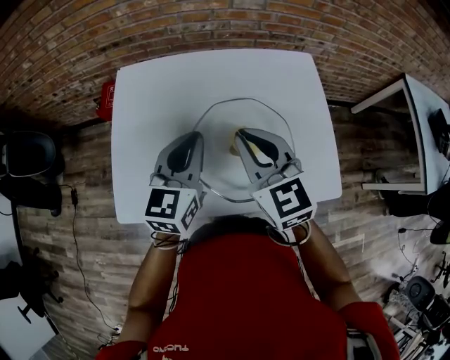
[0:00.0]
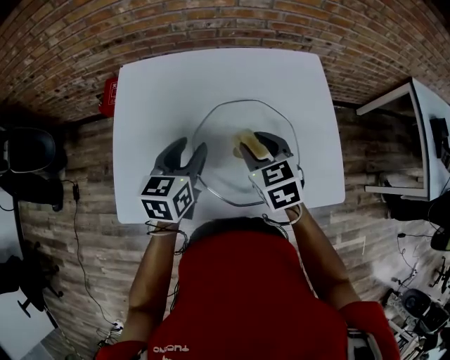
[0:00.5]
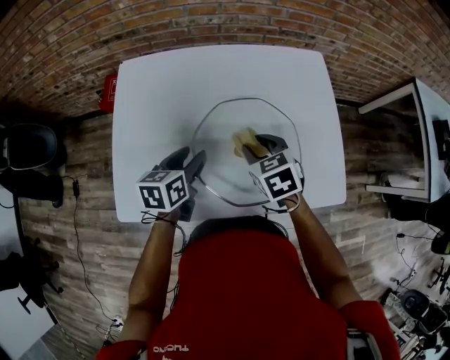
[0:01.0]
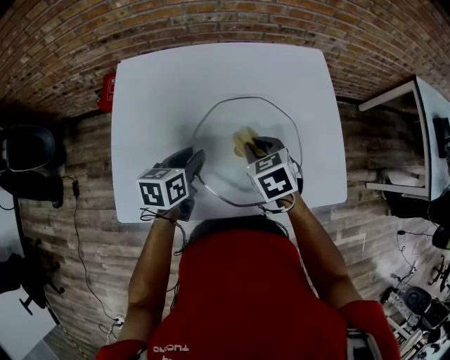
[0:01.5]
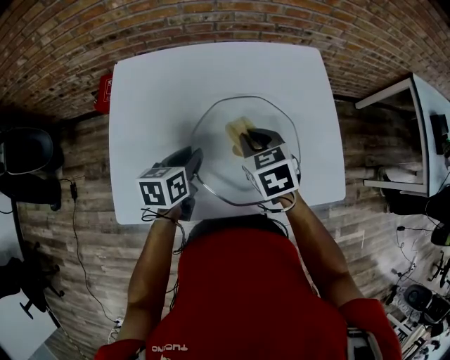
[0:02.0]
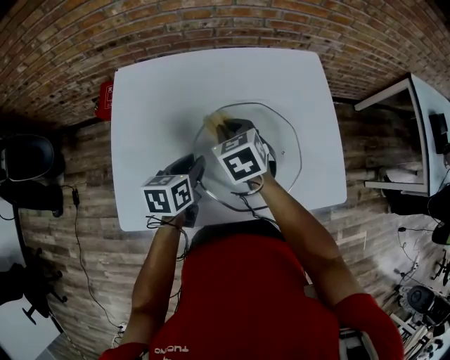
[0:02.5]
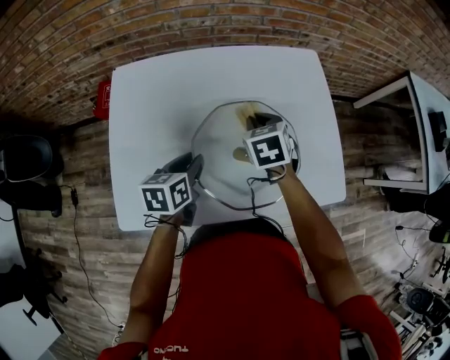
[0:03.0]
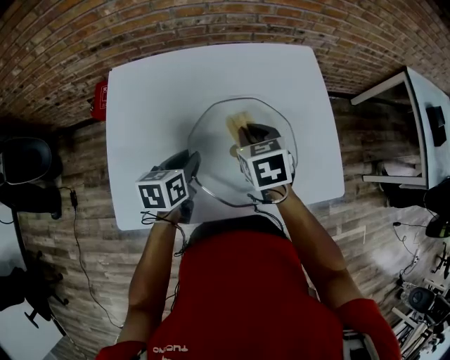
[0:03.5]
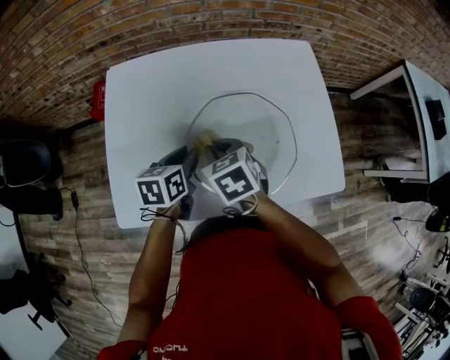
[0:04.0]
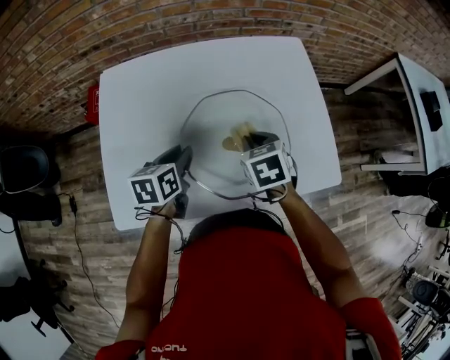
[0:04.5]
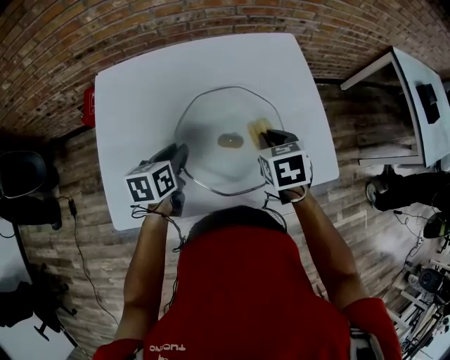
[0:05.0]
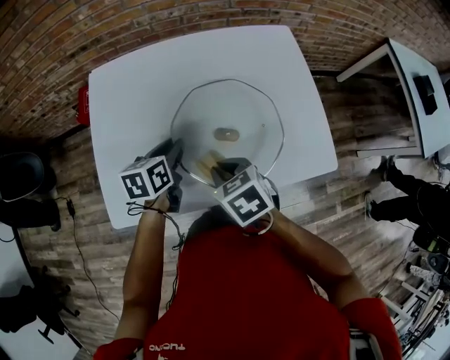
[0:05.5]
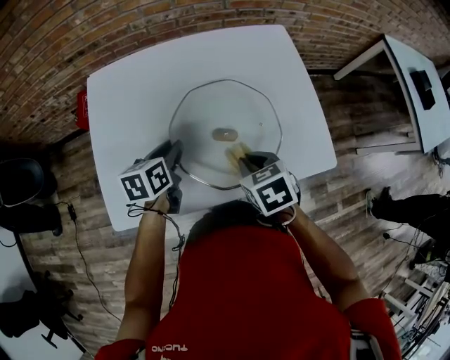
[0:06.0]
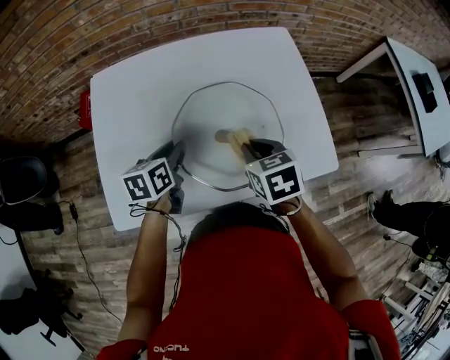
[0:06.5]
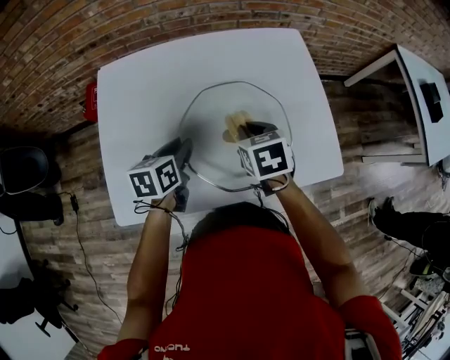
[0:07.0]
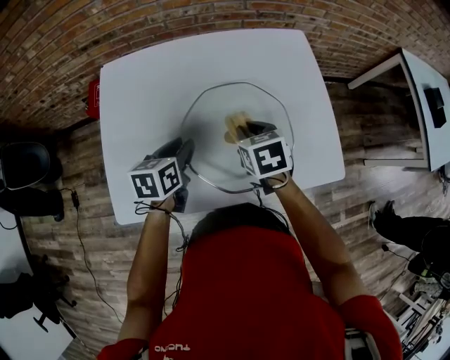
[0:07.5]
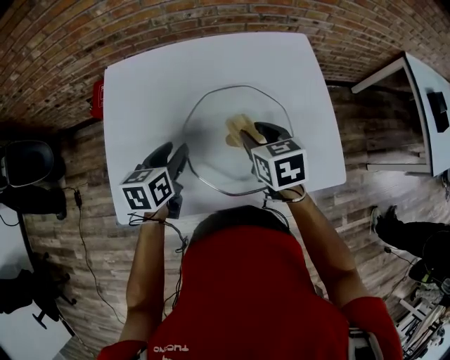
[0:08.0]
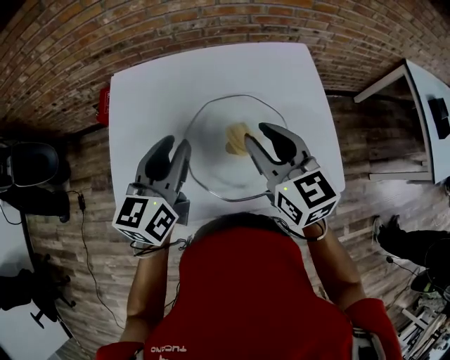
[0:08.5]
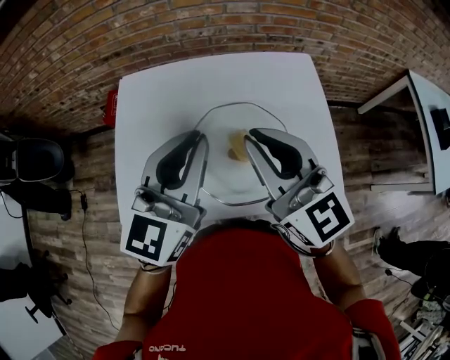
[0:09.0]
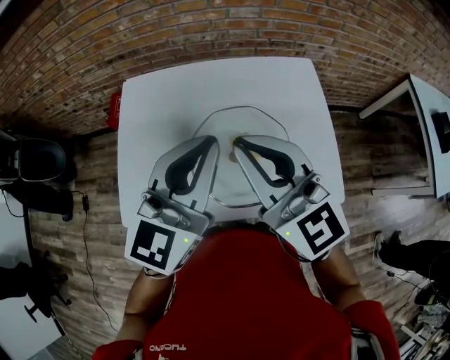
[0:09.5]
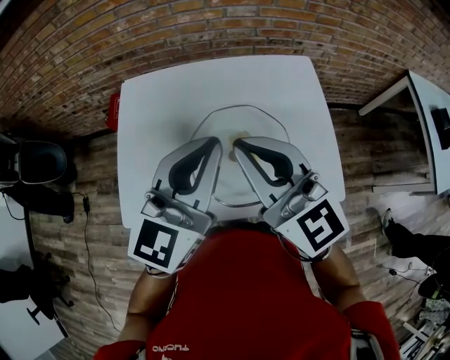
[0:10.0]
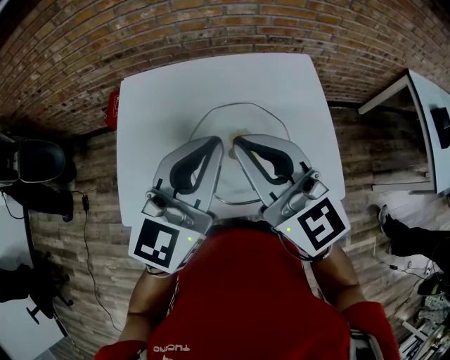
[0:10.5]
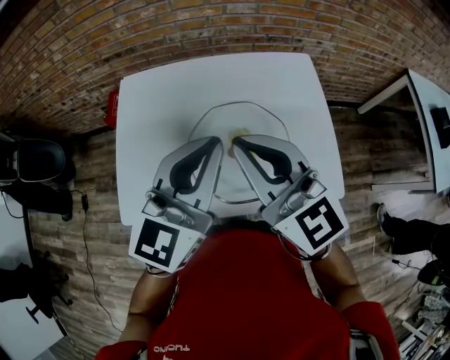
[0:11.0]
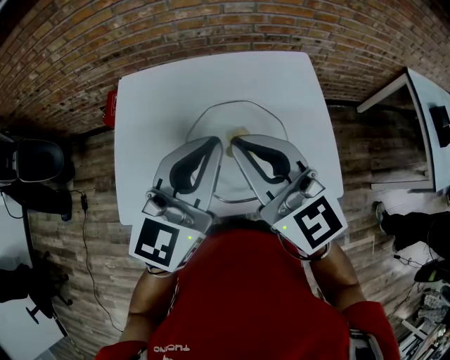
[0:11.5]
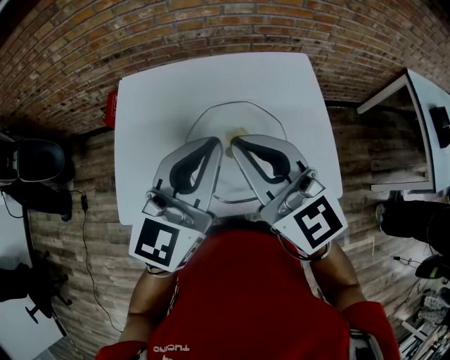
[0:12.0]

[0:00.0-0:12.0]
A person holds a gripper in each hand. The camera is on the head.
0:00.0 to 0:02.0: Both grippers travel together downward, about 15 cm. The right gripper changes its angle by approximately 30 degrees, and opens, then closes once more, while the left gripper swivels some 40 degrees, and opens its fingers.
0:02.0 to 0:04.0: The right gripper shifts approximately 5 cm to the left.
0:04.0 to 0:06.0: The right gripper moves left and right over about 20 cm, changing direction 2 times.
0:06.0 to 0:08.0: The right gripper heads forward, covering roughly 10 cm, and opens up.
0:08.0 to 0:10.0: The left gripper shifts approximately 30 cm upward and to the right, points its fingers about 40 degrees further upward, and closes. The right gripper is displaced upward by some 25 cm, tips its fingers upward by roughly 50 degrees, and closes up.
0:10.0 to 0:12.0: Neither gripper changes place.

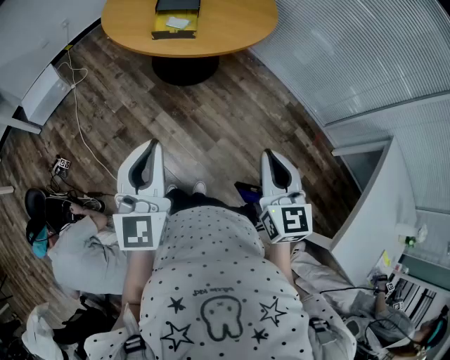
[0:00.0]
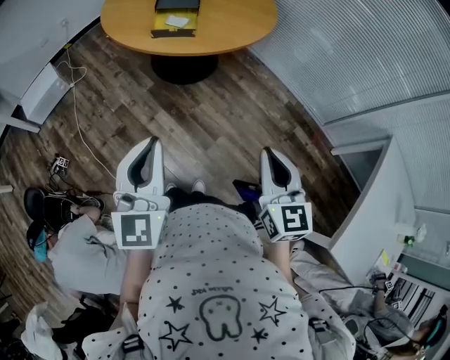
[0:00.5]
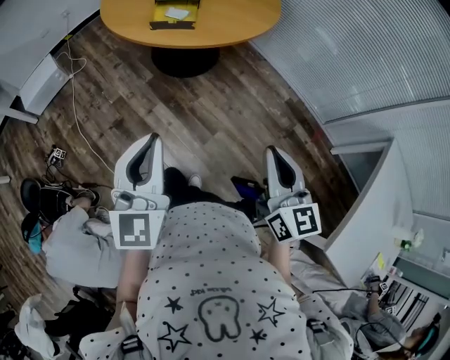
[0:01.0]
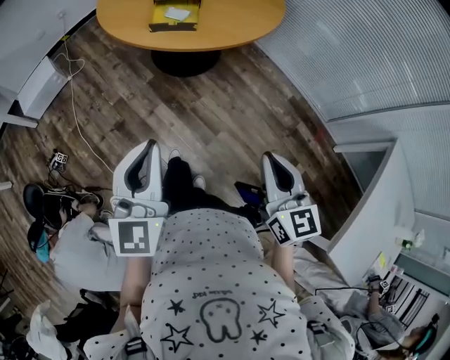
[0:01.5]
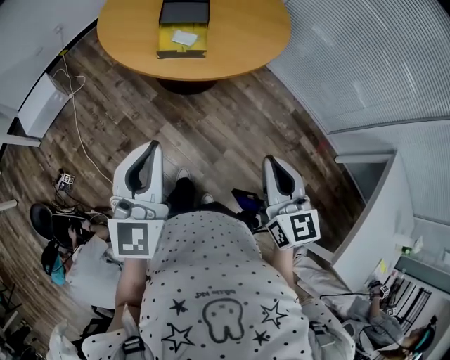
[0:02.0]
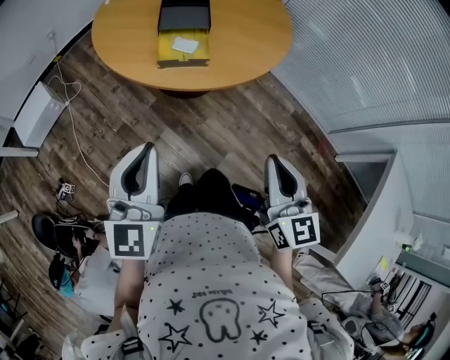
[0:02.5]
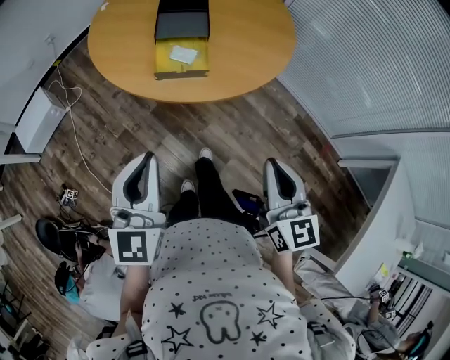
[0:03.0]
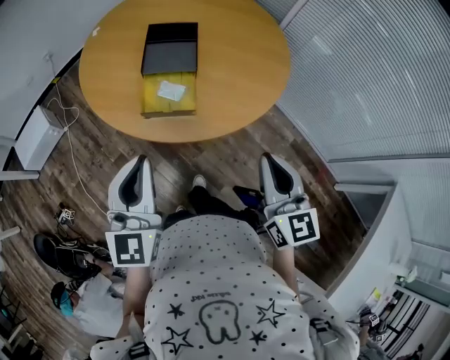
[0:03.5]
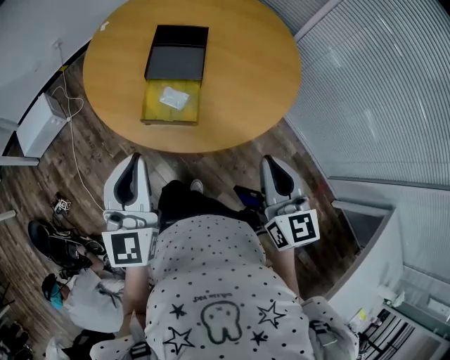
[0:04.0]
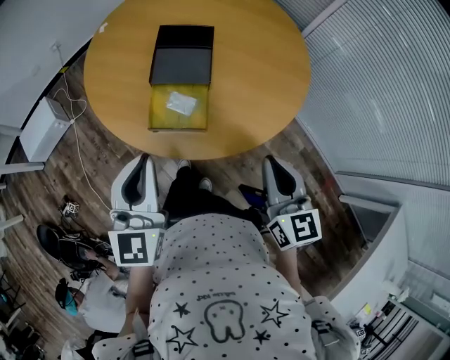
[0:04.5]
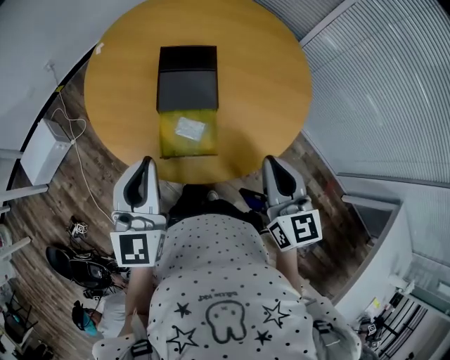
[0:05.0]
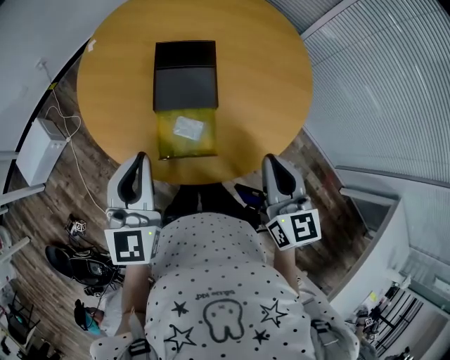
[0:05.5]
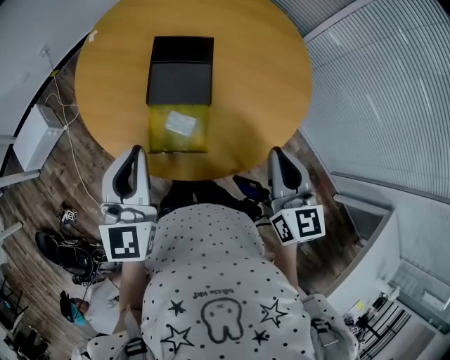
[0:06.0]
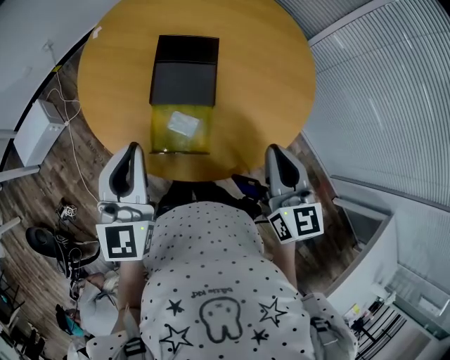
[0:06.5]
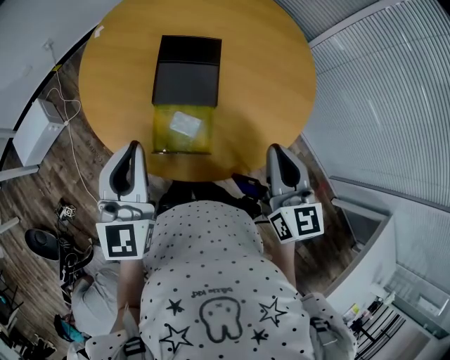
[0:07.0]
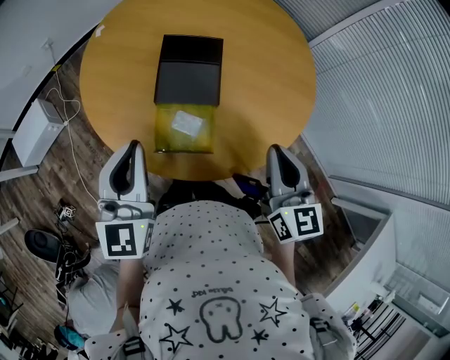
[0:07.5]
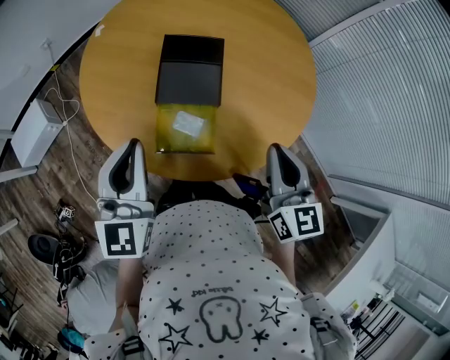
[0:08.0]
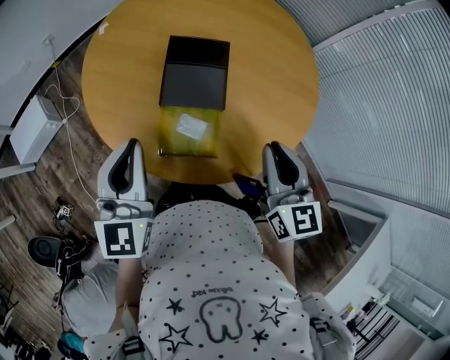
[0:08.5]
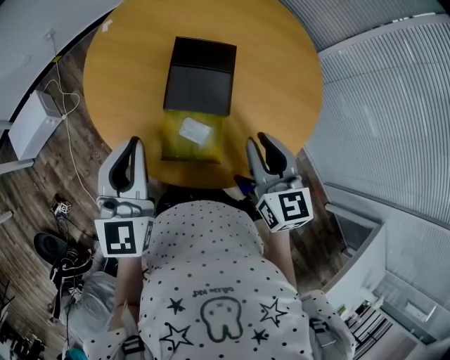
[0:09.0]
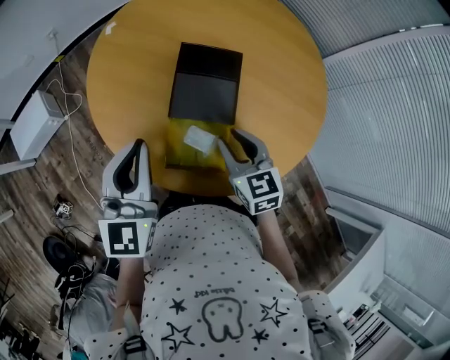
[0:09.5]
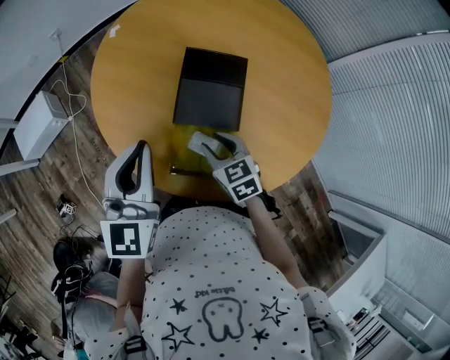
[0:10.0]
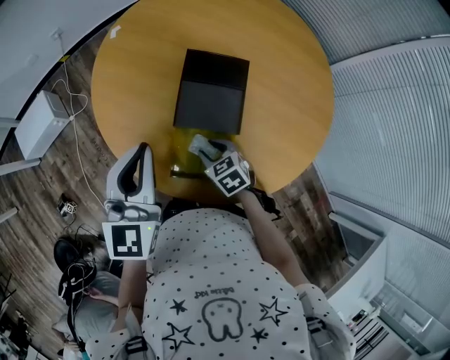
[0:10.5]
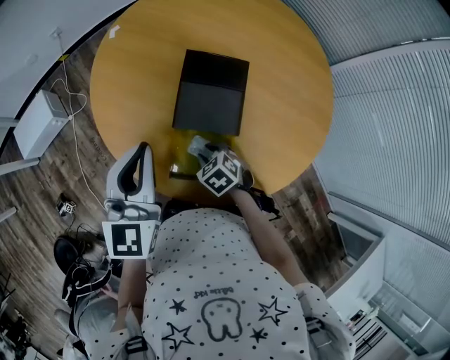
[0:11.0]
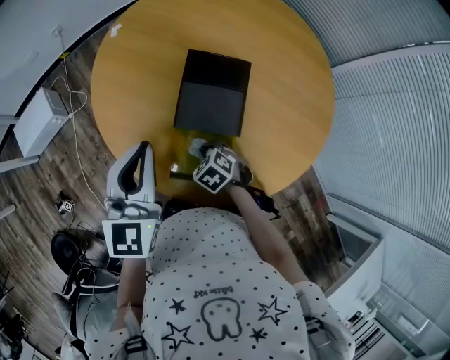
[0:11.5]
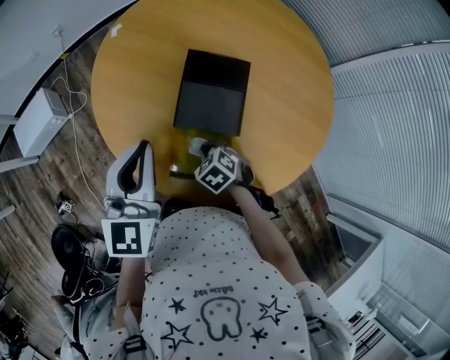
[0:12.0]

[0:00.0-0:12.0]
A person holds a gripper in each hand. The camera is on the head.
0:00.0 to 0:02.0: The right gripper shifts about 15 cm forward and to the left. Meanwhile the left gripper shifts approximately 15 cm forward.
0:02.0 to 0:04.0: Both grippers travel together forward, some 30 cm.
0:04.0 to 0:06.0: Both grippers move forward, about 15 cm.
0:06.0 to 0:08.0: The grippers make only small movements.
0:08.0 to 0:10.0: The left gripper travels forward by roughly 10 cm, while the right gripper shifts approximately 30 cm downward, to the left and forward, swivels approximately 40 degrees, and opens.
0:10.0 to 0:12.0: The right gripper moves downward, about 10 cm, turns by about 30 degrees, and closes.

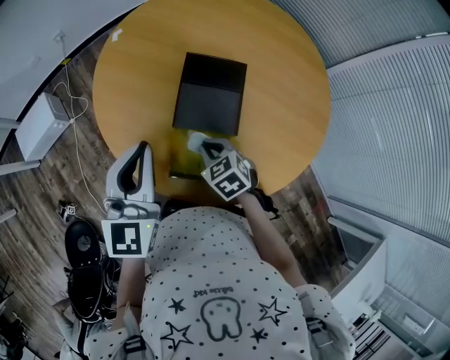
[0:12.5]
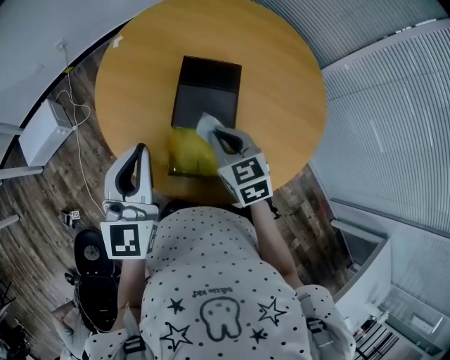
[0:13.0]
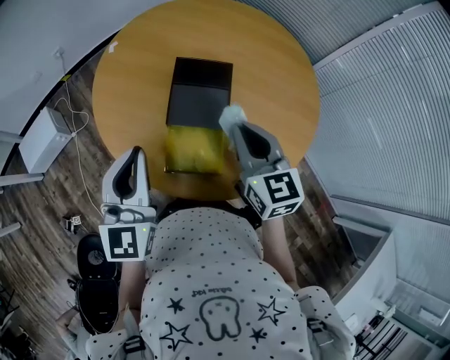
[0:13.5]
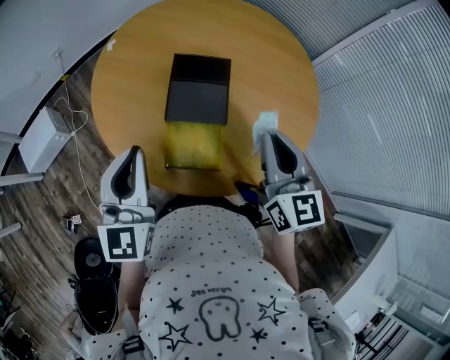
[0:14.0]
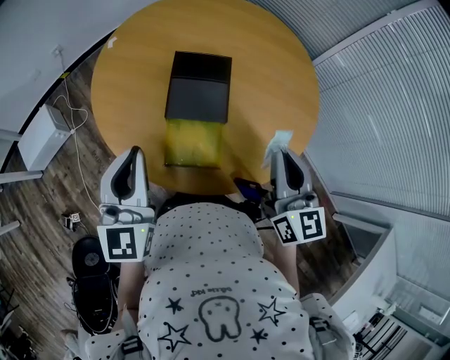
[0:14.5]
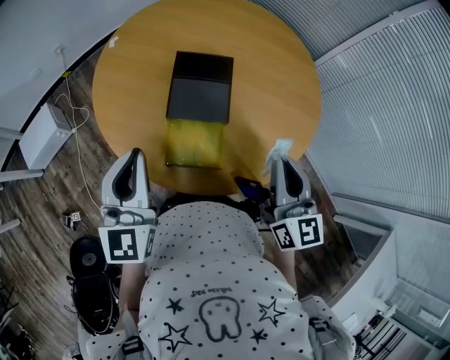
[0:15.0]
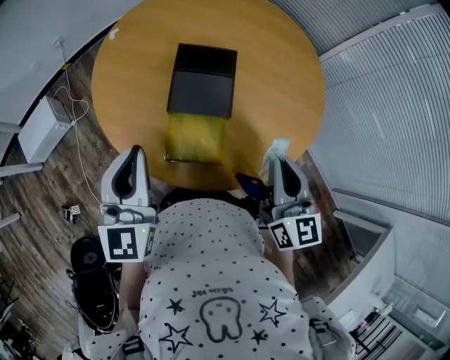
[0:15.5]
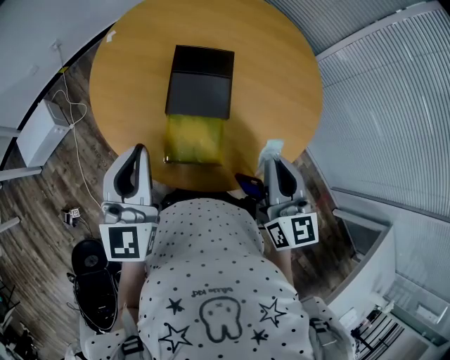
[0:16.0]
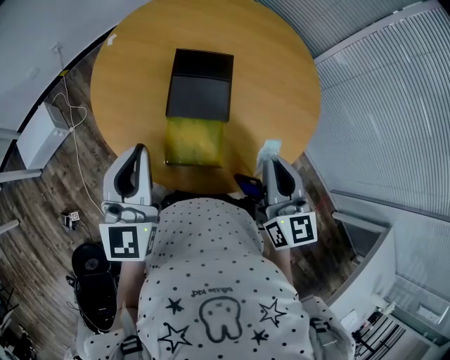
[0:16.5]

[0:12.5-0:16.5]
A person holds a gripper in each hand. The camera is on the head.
0:12.5 to 0:14.5: The left gripper heads backward, covering some 5 cm. Meanwhile the right gripper travels upward and to the right by roughly 25 cm, and points its fingers approximately 50 degrees further upward.
0:14.5 to 0:16.5: The grippers make only small movements.
